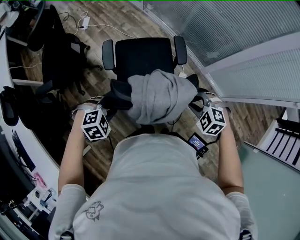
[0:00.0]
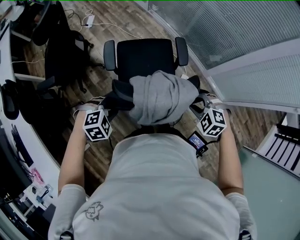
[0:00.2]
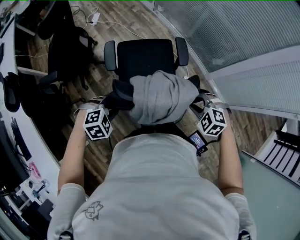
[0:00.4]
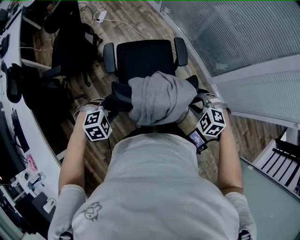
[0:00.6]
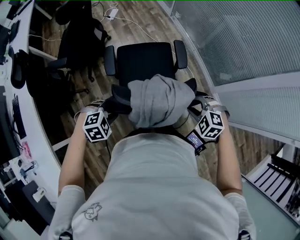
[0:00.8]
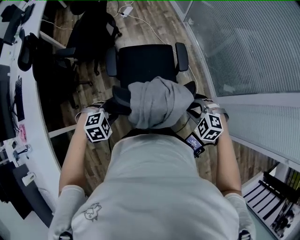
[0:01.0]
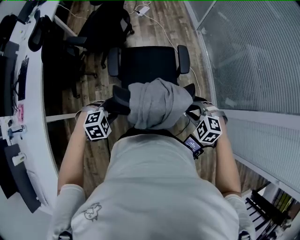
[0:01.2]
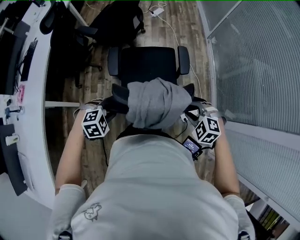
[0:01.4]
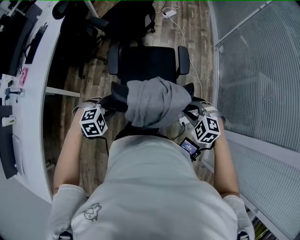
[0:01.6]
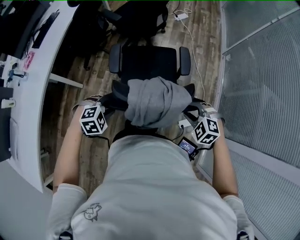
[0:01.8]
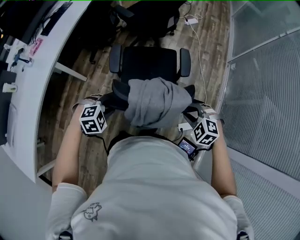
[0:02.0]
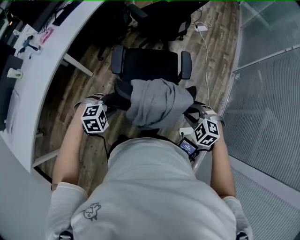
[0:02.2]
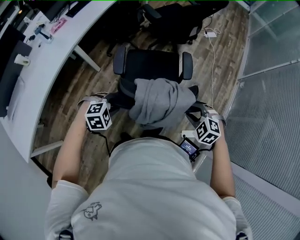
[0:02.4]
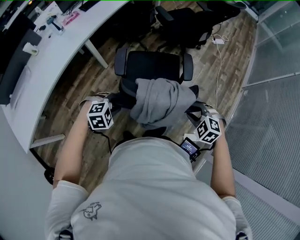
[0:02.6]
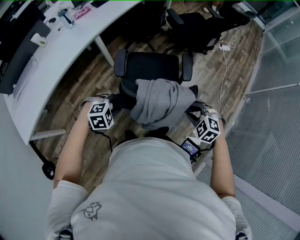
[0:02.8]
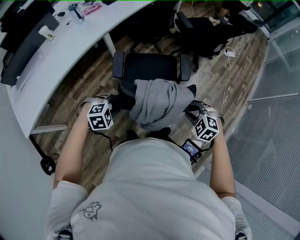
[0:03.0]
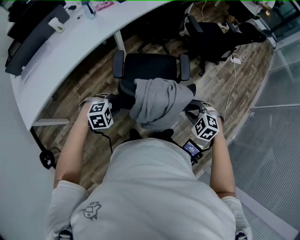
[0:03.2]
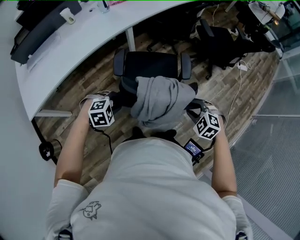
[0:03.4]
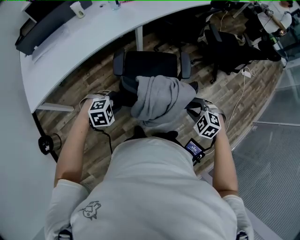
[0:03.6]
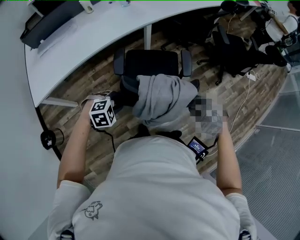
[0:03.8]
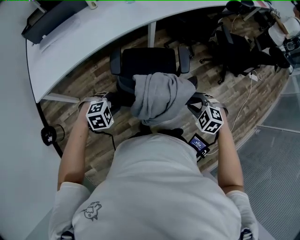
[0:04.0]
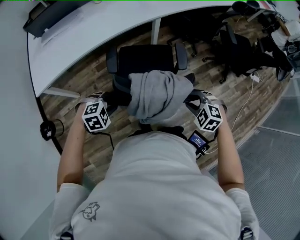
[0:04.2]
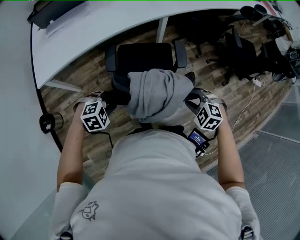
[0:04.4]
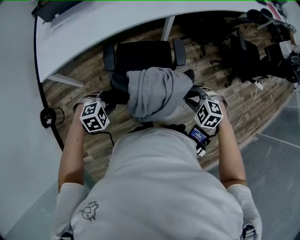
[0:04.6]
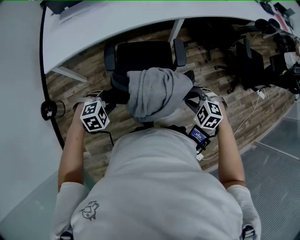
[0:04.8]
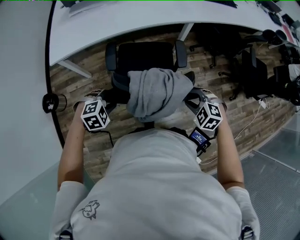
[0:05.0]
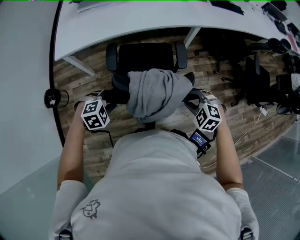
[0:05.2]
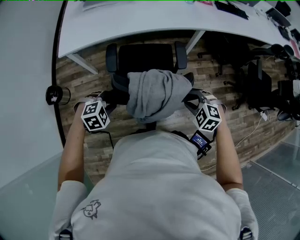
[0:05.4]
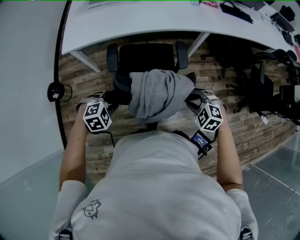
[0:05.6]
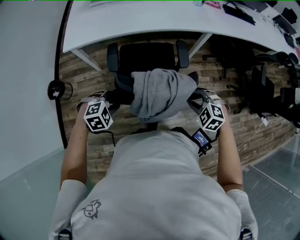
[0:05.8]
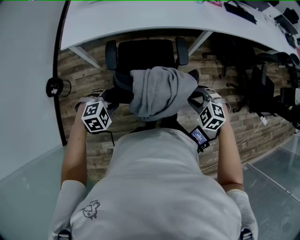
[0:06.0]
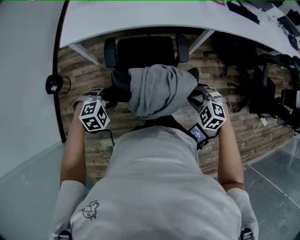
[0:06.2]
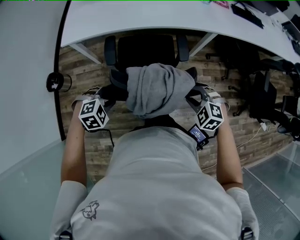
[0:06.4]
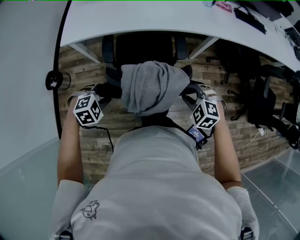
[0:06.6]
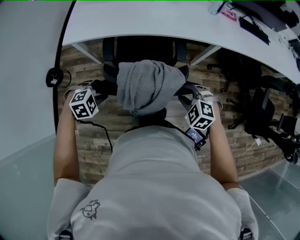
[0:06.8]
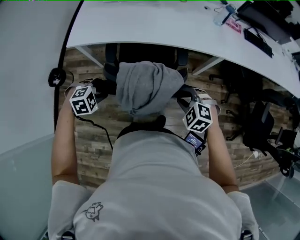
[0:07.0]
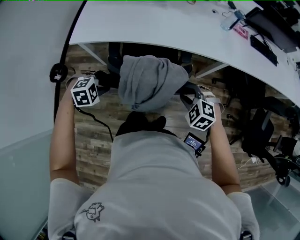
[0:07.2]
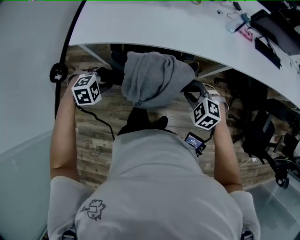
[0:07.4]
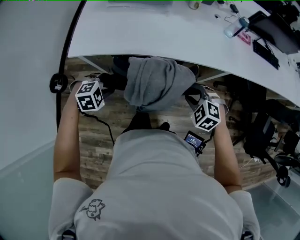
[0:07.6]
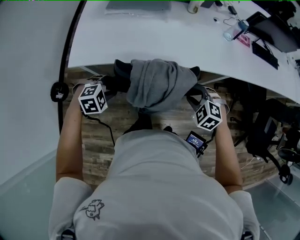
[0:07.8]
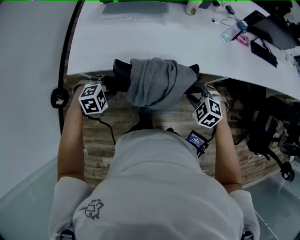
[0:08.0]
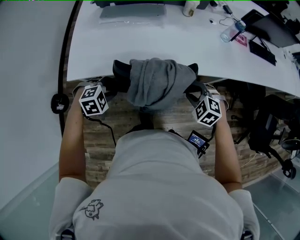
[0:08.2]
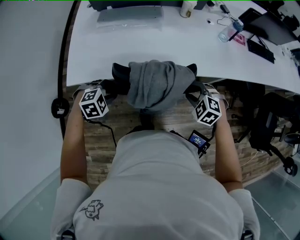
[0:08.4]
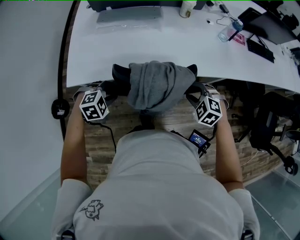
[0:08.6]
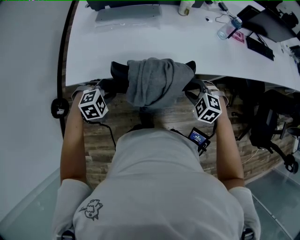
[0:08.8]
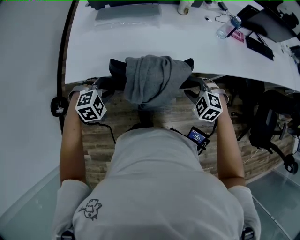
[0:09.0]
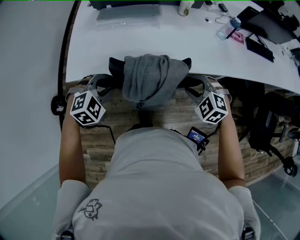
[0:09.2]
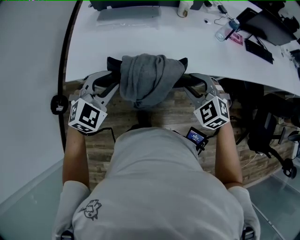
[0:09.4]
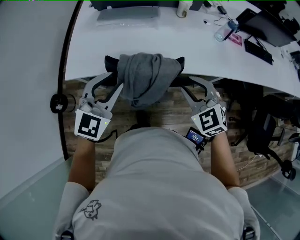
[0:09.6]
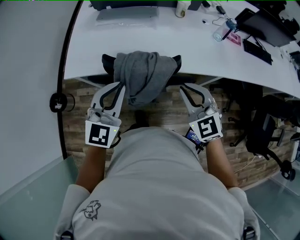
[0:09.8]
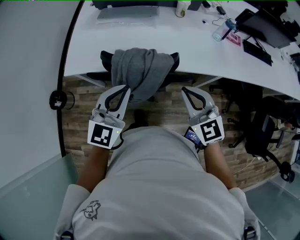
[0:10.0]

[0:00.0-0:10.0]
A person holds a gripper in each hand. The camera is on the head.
0:00.0 to 0:01.4: The left gripper moves about 10 cm, and rotates approximately 40 degrees; the right gripper moves some 10 cm, and swivels about 40 degrees.
0:01.4 to 0:02.8: The right gripper ends up some 25 cm from where it was, and turns by about 30 degrees. The left gripper changes place by about 30 cm, and changes its angle by roughly 30 degrees.
0:02.8 to 0:04.2: The right gripper shifts by about 30 cm, and turns by roughly 30 degrees. The left gripper moves roughly 30 cm, and changes its angle by some 30 degrees.
0:04.2 to 0:05.8: The right gripper is displaced to the left by roughly 20 cm, and turns by approximately 20 degrees. The left gripper goes roughly 20 cm to the left and backward, and turns by approximately 20 degrees.
0:05.8 to 0:07.2: The two grippers go approximately 20 cm forward.
0:07.2 to 0:08.6: The two grippers go some 25 cm forward and to the left.
0:08.6 to 0:10.0: The left gripper heads upward and to the right, covering approximately 25 cm, points its fingers approximately 60 degrees further upward, and closes its fingers; the right gripper heads upward, covering some 20 cm, tilts its fingers approximately 40 degrees upward, and closes.

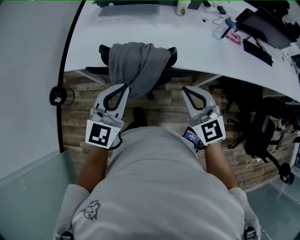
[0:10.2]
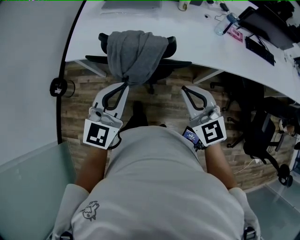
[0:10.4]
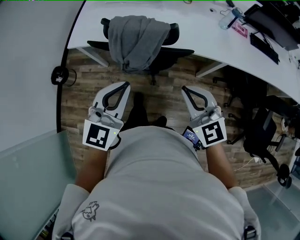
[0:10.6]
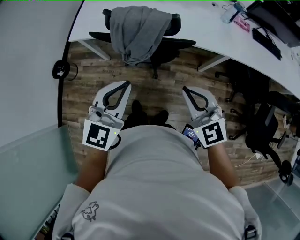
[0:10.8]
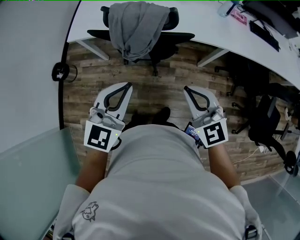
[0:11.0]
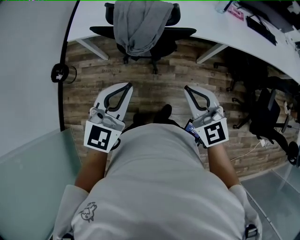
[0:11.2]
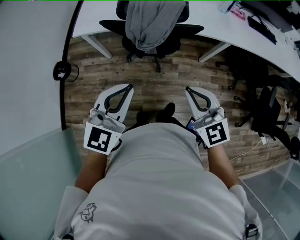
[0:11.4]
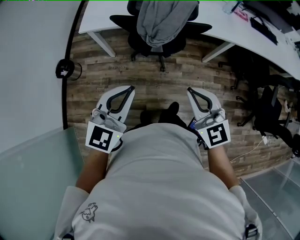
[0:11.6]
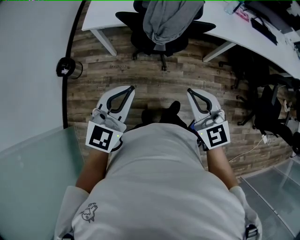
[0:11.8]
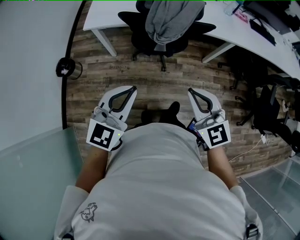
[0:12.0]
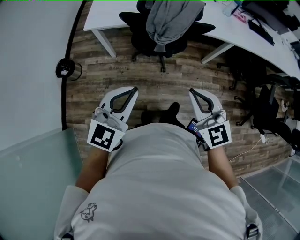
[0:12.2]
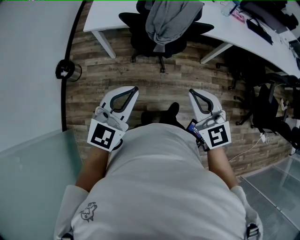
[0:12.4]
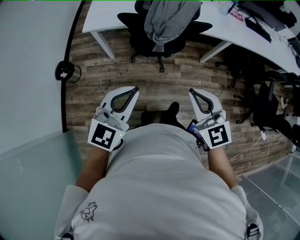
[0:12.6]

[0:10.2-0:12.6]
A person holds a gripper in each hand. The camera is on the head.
0:10.2 to 0:11.4: Both grippers move backward, some 25 cm.
0:11.4 to 0:12.6: The right gripper is displaced backward and to the left by some 15 cm; the left gripper shifts roughly 15 cm to the left and backward.

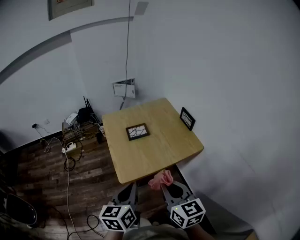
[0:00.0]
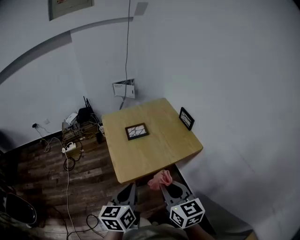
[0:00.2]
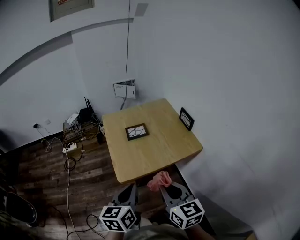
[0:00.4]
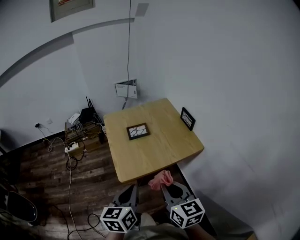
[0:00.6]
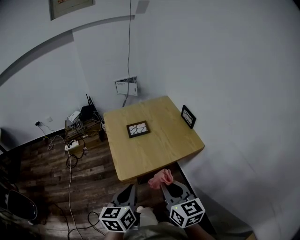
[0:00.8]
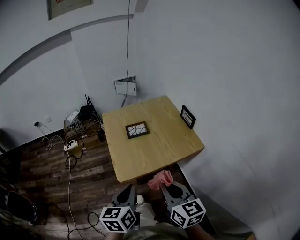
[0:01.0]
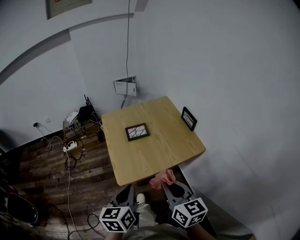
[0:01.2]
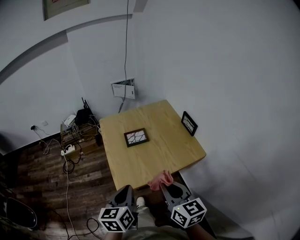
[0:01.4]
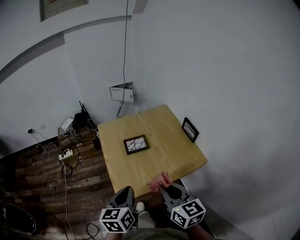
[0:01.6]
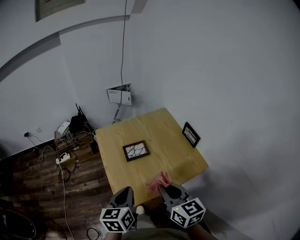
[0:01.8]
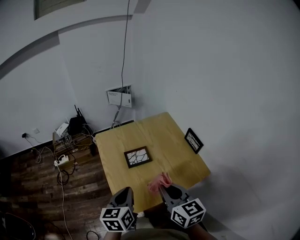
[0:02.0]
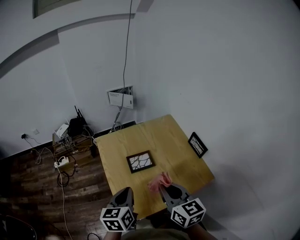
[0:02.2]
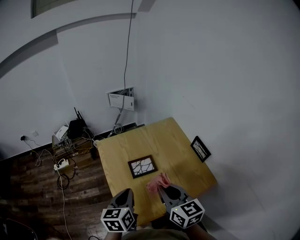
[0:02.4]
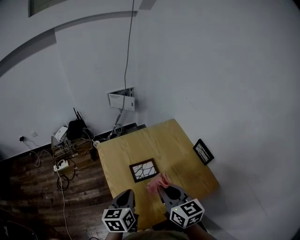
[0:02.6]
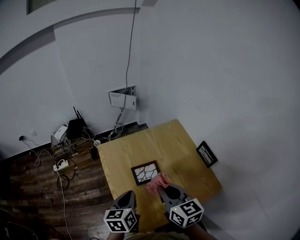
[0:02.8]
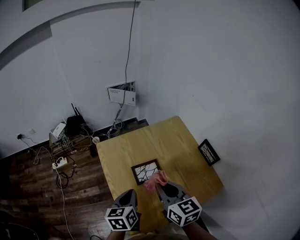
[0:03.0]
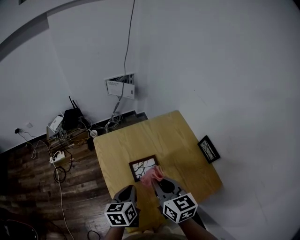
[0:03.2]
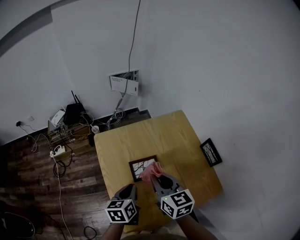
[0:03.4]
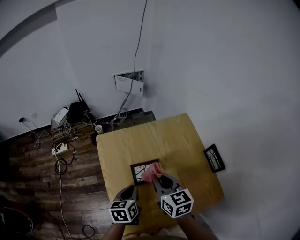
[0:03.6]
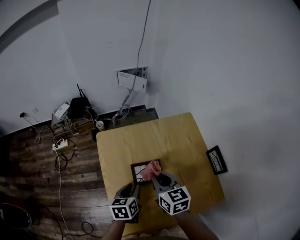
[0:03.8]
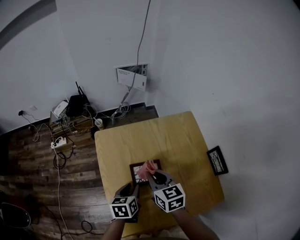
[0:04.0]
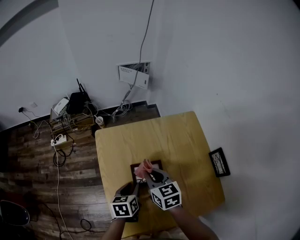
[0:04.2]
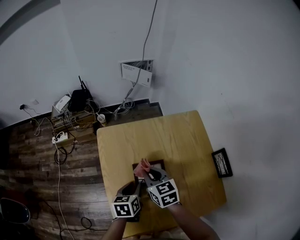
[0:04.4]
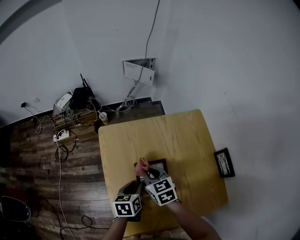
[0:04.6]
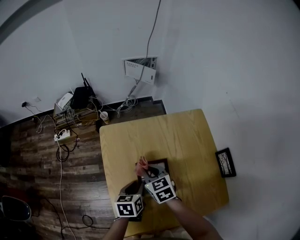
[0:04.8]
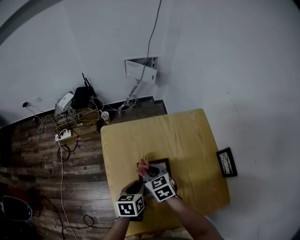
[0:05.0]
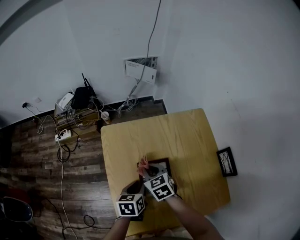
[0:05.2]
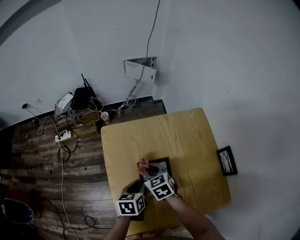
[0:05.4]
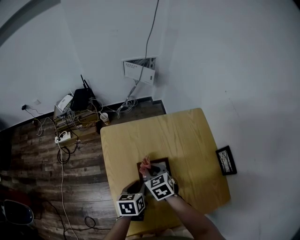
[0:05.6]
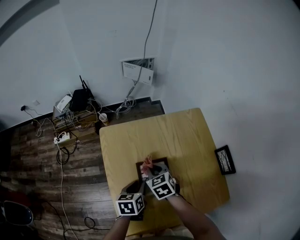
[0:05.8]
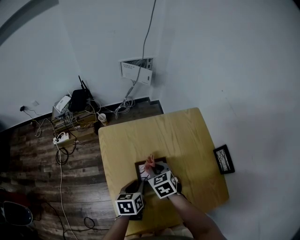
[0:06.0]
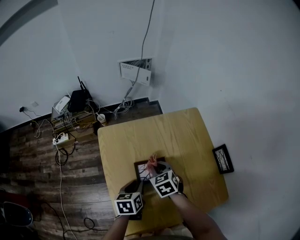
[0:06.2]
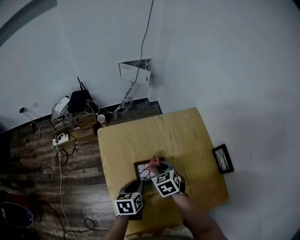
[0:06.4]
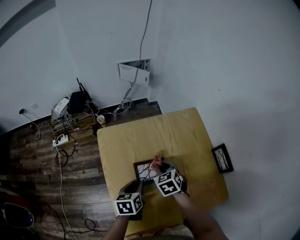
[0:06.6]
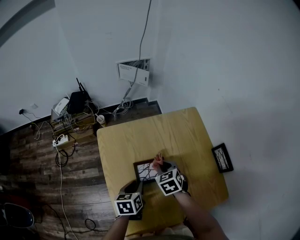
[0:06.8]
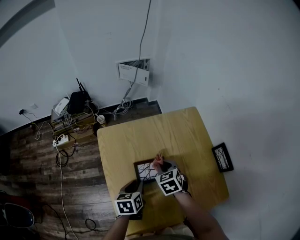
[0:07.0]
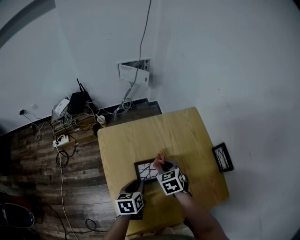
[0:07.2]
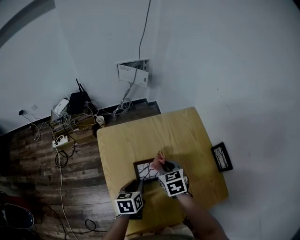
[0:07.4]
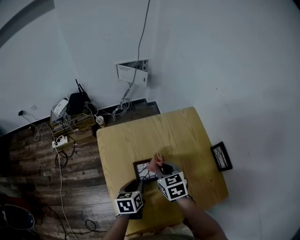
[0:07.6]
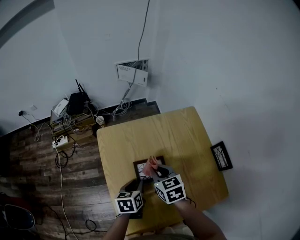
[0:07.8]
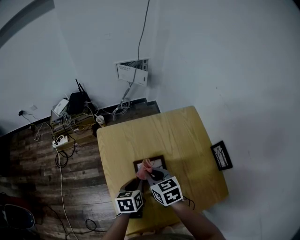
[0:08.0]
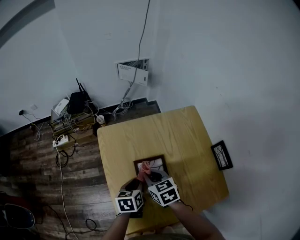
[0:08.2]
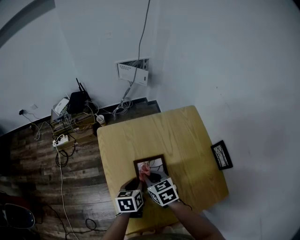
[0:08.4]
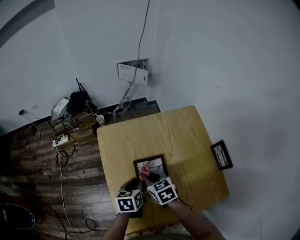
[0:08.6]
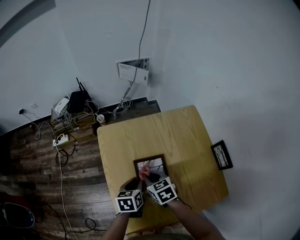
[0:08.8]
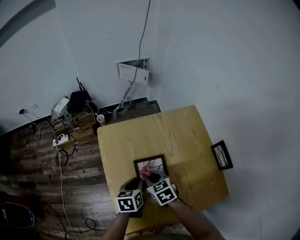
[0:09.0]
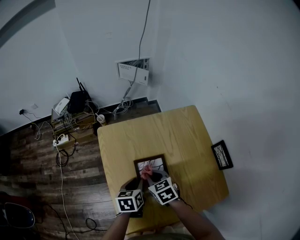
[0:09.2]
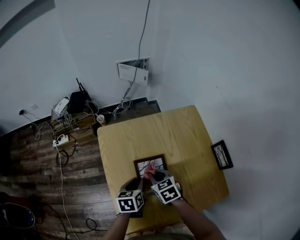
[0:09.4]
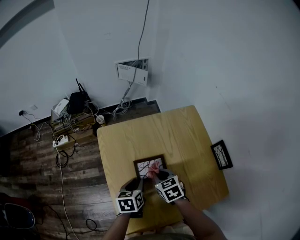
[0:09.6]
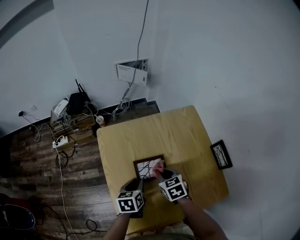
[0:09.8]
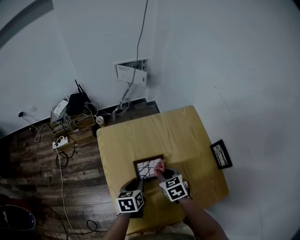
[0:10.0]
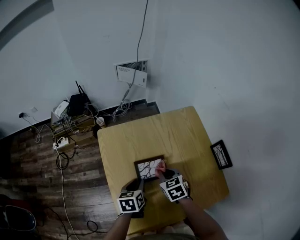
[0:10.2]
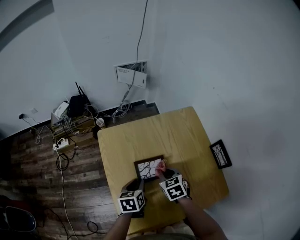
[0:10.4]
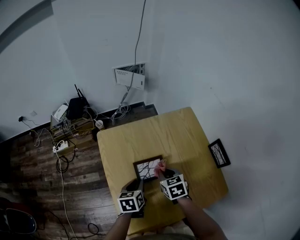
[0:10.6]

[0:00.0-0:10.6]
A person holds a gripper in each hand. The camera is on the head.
0:00.0 to 0:01.6: The grippers both shift forward by about 10 cm.
0:01.6 to 0:03.0: Both grippers travel together forward, approximately 25 cm.
0:03.0 to 0:04.6: The right gripper travels downward and forward by roughly 20 cm, and rotates roughly 30 degrees. The left gripper is displaced downward and forward by approximately 15 cm, and opens up.
0:04.6 to 0:06.0: The grippers move only a little.
0:06.0 to 0:07.6: The right gripper moves approximately 5 cm.
0:07.6 to 0:09.0: The right gripper travels to the left by roughly 5 cm.
0:09.0 to 0:10.6: The right gripper travels to the right by some 10 cm.
